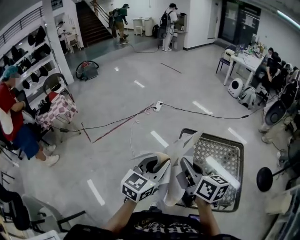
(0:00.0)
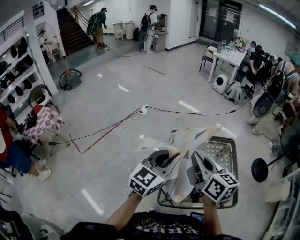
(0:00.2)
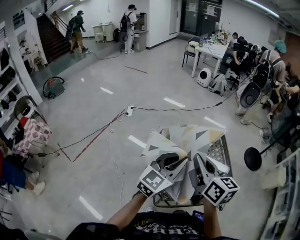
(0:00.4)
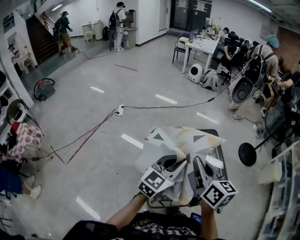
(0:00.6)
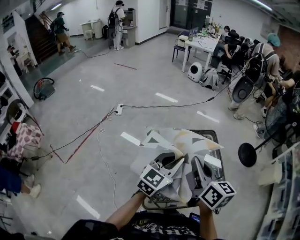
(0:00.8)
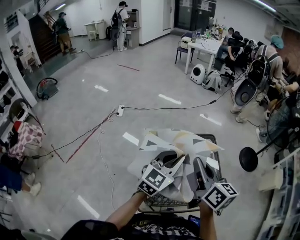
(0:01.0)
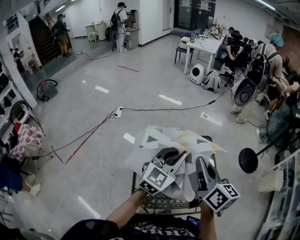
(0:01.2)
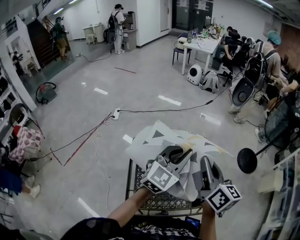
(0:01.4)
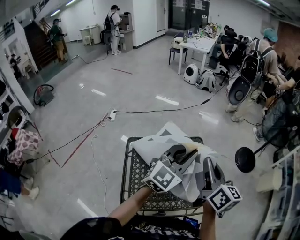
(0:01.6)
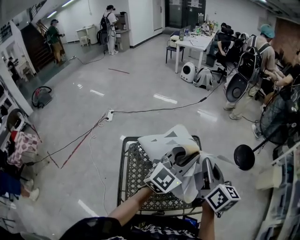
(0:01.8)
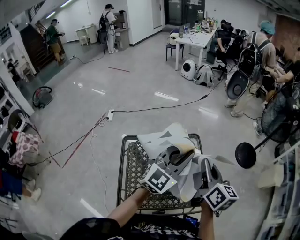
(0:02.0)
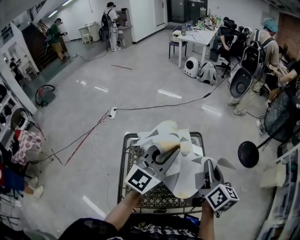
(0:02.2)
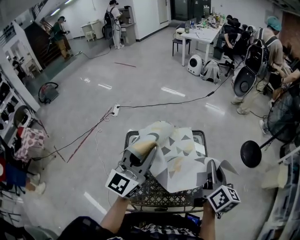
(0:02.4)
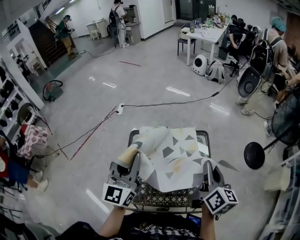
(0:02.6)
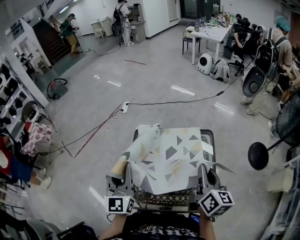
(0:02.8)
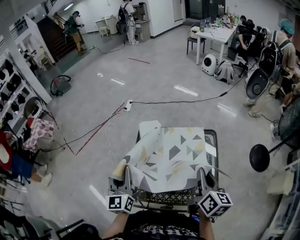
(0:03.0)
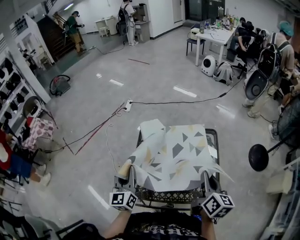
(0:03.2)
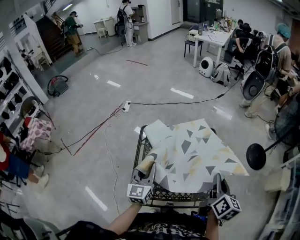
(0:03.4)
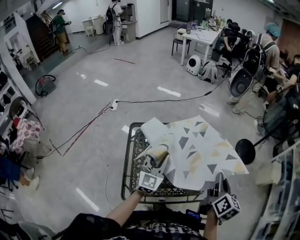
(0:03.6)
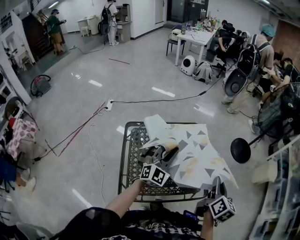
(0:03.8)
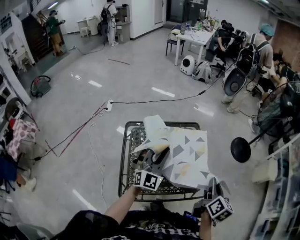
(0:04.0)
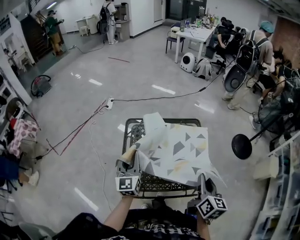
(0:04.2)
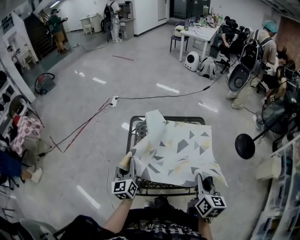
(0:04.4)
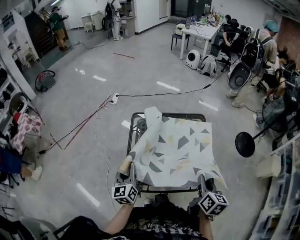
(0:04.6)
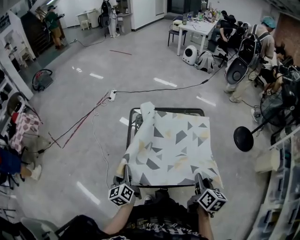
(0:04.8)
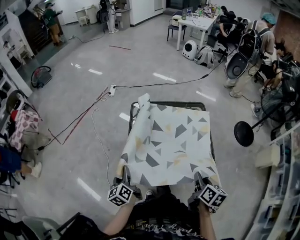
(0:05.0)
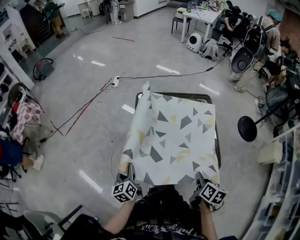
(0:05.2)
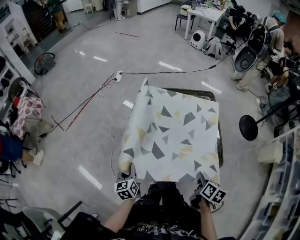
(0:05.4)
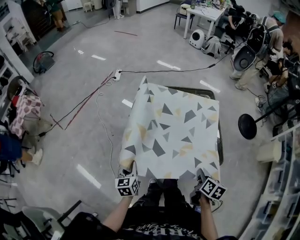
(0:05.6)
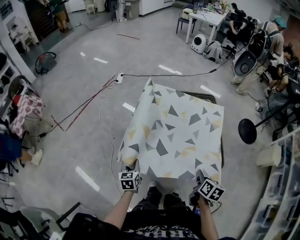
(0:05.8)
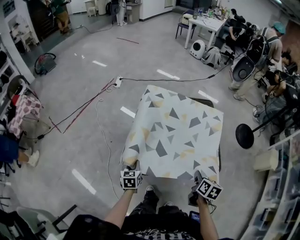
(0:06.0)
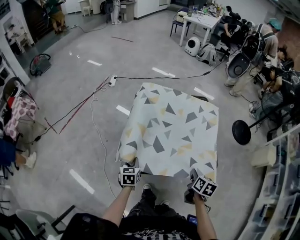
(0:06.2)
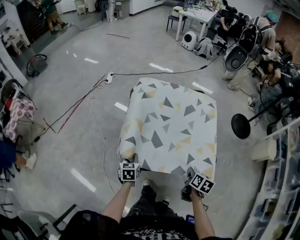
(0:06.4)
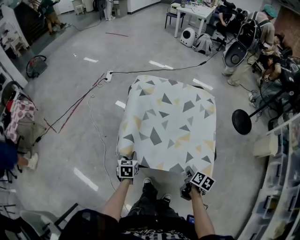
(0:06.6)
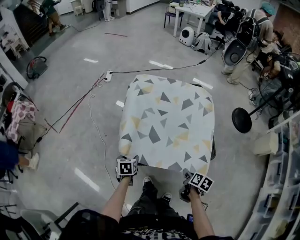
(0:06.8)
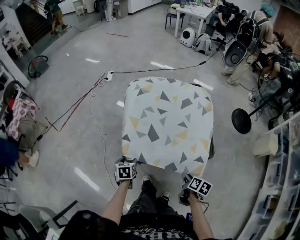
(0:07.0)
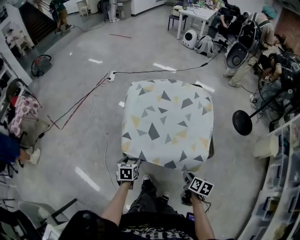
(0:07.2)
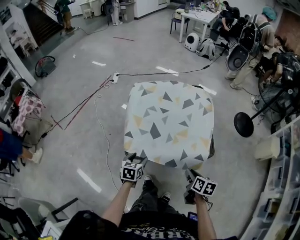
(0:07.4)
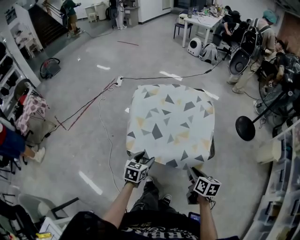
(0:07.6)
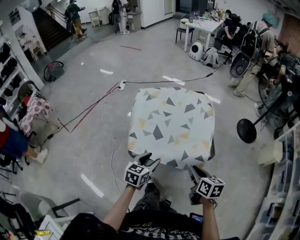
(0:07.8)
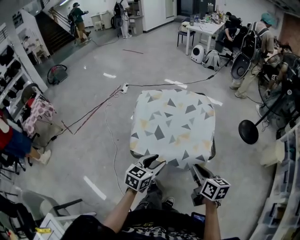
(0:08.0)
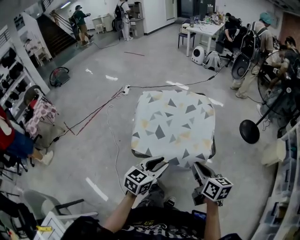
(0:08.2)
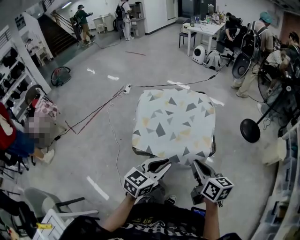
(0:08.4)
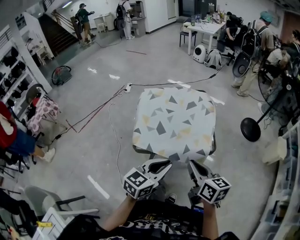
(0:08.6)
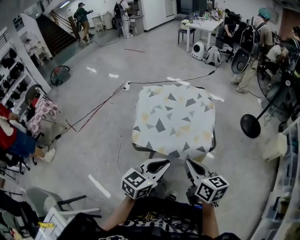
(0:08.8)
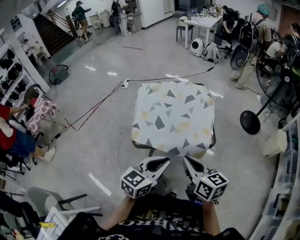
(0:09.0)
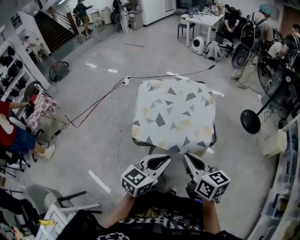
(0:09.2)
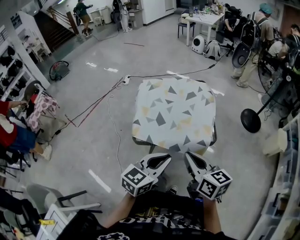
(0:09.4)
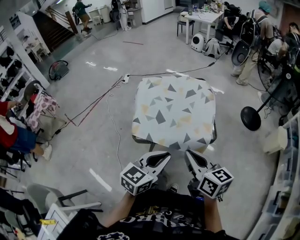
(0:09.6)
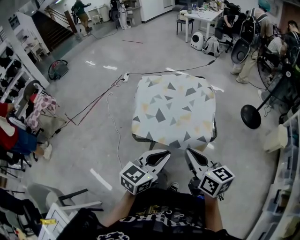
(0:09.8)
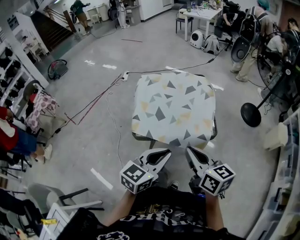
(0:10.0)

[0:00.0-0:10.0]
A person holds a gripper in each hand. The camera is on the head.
0:00.0 to 0:01.4: The left gripper ends up some 40 cm from where it was, and swivels approximately 40 degrees. Meanwhile the right gripper moves roughly 40 cm, and turns by approximately 40 degrees.
0:01.4 to 0:02.8: The left gripper moves approximately 20 cm, and turns by approximately 50 degrees, while the right gripper travels downward by about 10 cm.
0:02.8 to 0:04.2: The right gripper ends up approximately 15 cm from where it was. The left gripper swings up and down, about 15 cm each way, with 2 reversals.
0:04.2 to 0:05.8: The two grippers go some 25 cm downward, backward and to the left. The right gripper rotates roughly 30 degrees, while the left gripper points its fingers approximately 40 degrees further downward.
0:05.8 to 0:07.2: The left gripper shifts roughly 10 cm backward and downward, and opens its fingers. Meanwhile the right gripper travels backward and downward by about 15 cm, and opens its fingers.
0:07.2 to 0:08.6: The right gripper travels upward by roughly 25 cm, angles its fingers upward, by about 30 degrees, and closes. Meanwhile the left gripper is displaced upward, to the right and backward by about 40 cm, angles its fingers upward, by approximately 40 degrees, and closes.
0:08.6 to 0:10.0: The grippers stay close to where they were, moving slightly.

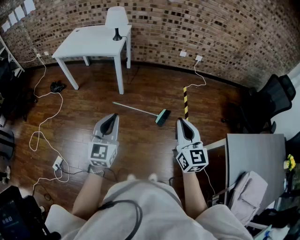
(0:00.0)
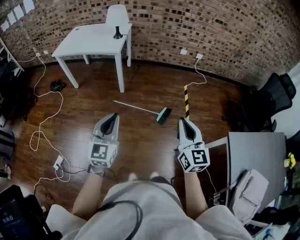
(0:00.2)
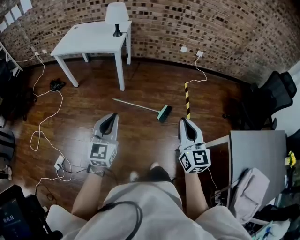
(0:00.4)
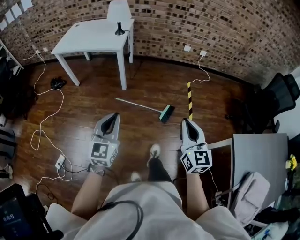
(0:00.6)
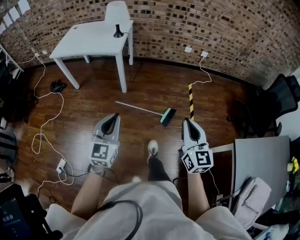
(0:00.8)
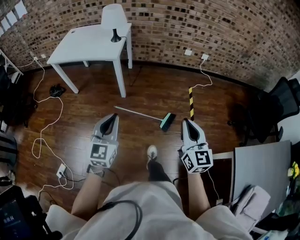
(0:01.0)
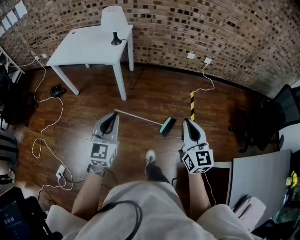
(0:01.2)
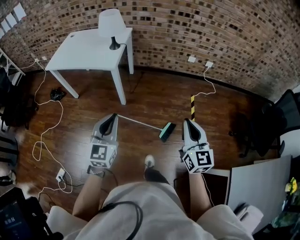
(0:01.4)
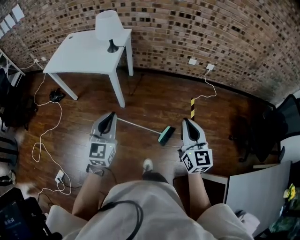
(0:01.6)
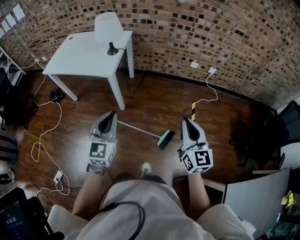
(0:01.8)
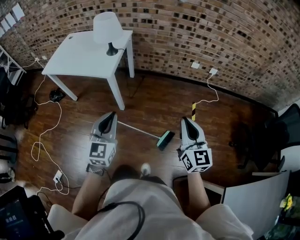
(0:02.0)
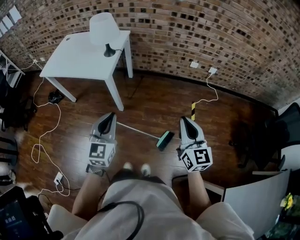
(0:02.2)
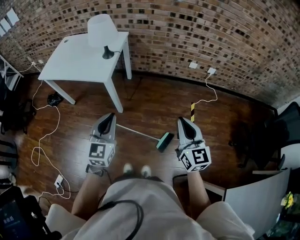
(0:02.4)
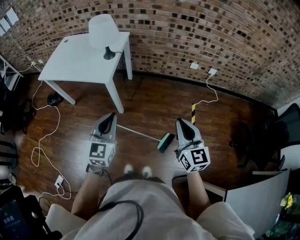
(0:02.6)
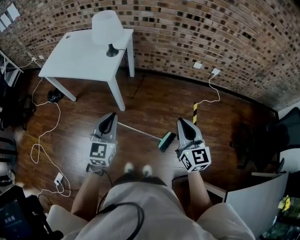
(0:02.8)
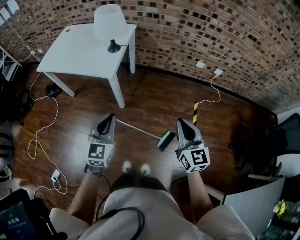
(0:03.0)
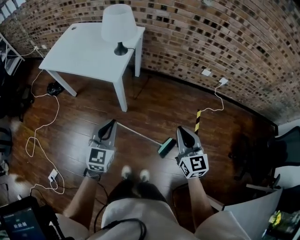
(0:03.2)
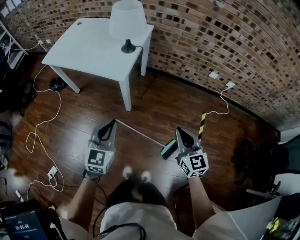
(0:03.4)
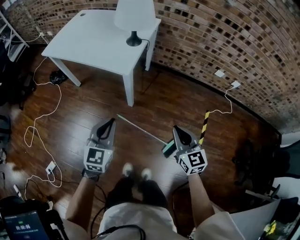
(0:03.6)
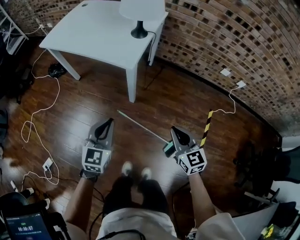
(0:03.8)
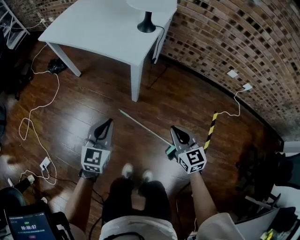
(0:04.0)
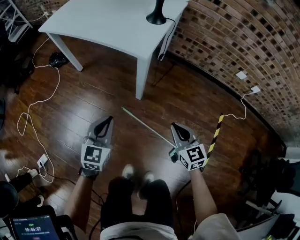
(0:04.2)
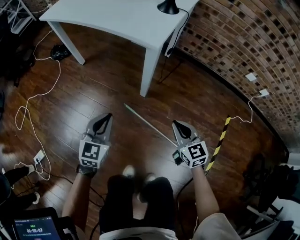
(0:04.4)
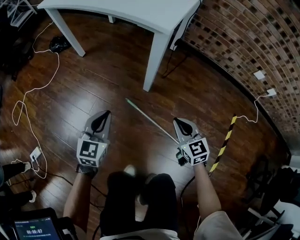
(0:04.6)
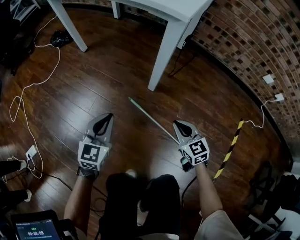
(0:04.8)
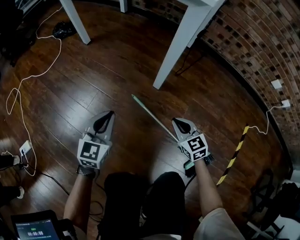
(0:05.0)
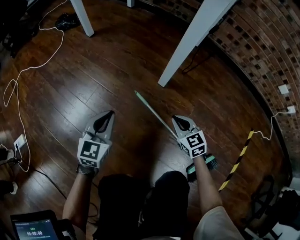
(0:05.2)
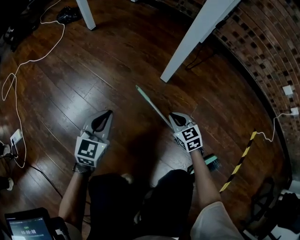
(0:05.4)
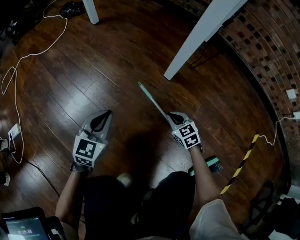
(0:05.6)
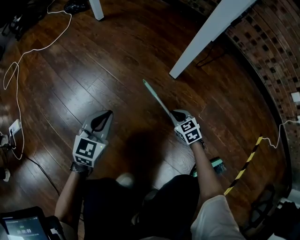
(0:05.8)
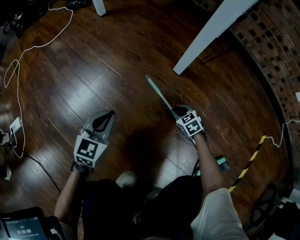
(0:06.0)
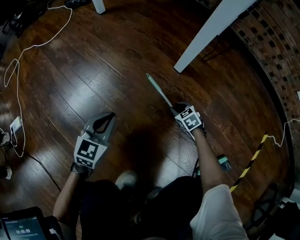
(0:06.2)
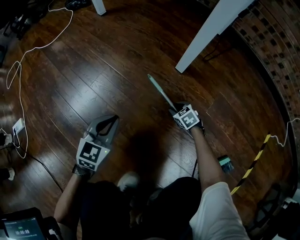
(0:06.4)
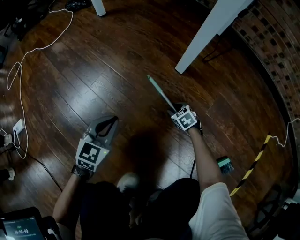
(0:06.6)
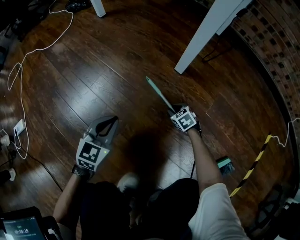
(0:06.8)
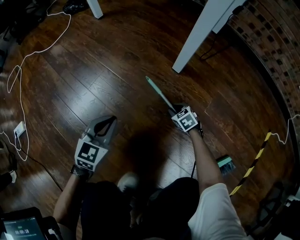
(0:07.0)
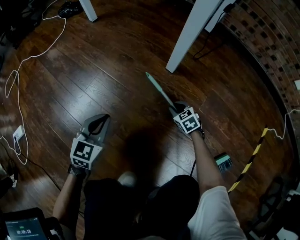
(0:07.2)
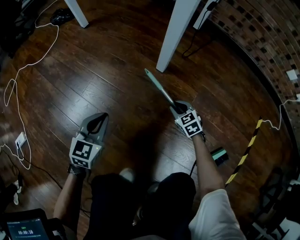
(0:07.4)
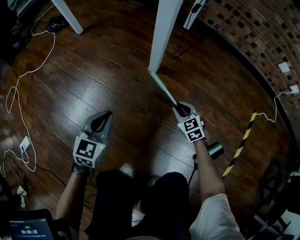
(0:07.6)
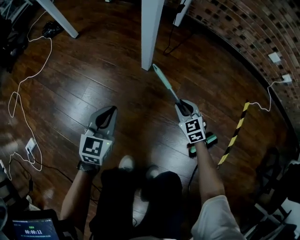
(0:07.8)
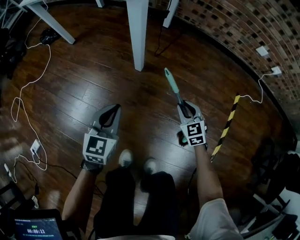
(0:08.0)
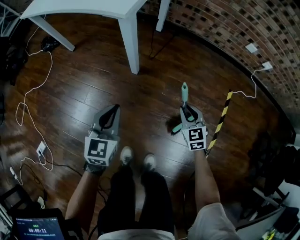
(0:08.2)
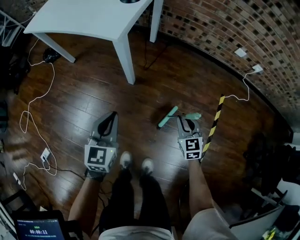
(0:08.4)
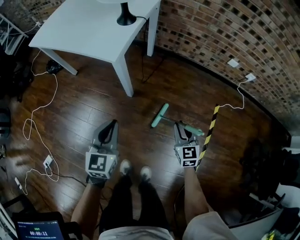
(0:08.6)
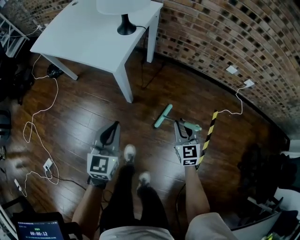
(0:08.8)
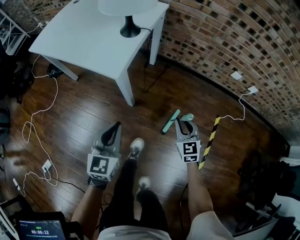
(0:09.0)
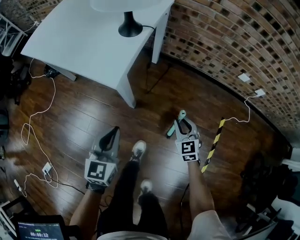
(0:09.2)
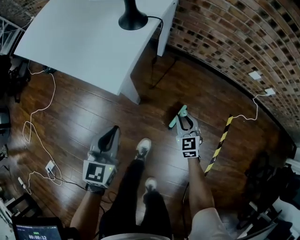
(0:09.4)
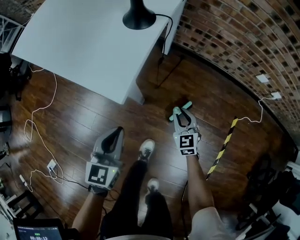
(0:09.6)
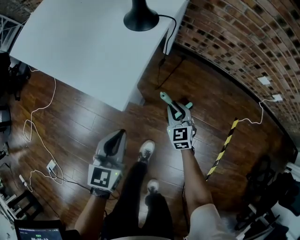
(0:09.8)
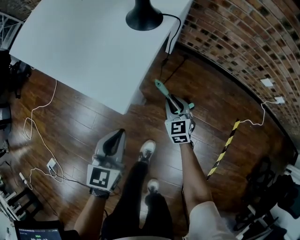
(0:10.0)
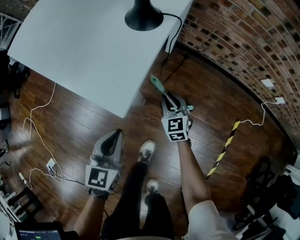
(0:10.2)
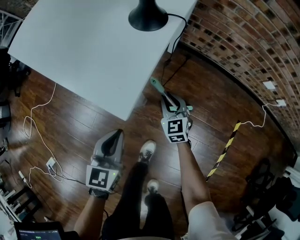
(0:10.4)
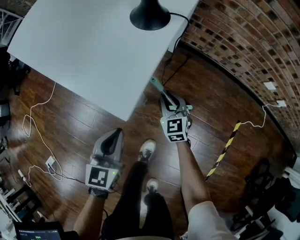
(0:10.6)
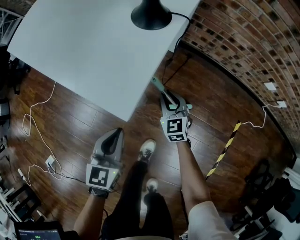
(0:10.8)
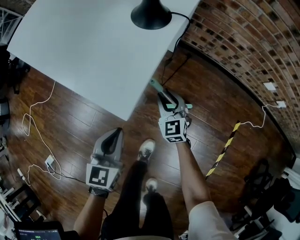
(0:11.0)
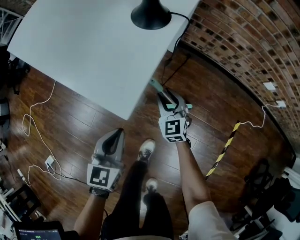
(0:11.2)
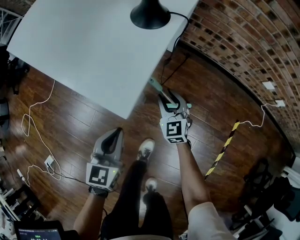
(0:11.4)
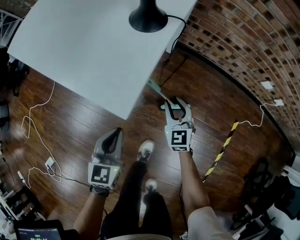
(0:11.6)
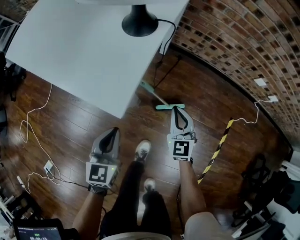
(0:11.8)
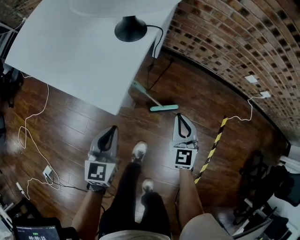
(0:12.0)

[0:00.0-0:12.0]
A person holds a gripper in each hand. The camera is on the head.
0:00.0 to 0:01.6: Both grippers travel together forward, about 30 cm.
0:01.6 to 0:03.0: The right gripper travels forward by about 15 cm. Meanwhile the left gripper heads forward and downward, covering approximately 15 cm.
0:03.0 to 0:04.4: The left gripper travels downward and to the left by some 40 cm, while the right gripper moves downward, roughly 40 cm, and swivels some 30 degrees.
0:04.4 to 0:06.0: The two grippers go some 50 cm downward. The right gripper swivels about 40 degrees.
0:06.0 to 0:07.6: Both grippers travel together upward and to the right, roughly 15 cm.
0:07.6 to 0:09.0: Both grippers move upward, some 40 cm. The right gripper turns by about 30 degrees.
0:09.0 to 0:10.4: The left gripper is displaced downward, forward and to the left by some 20 cm, while the right gripper travels forward, downward and to the left by some 30 cm.
0:10.4 to 0:12.0: The right gripper moves upward, to the right and backward, some 20 cm.

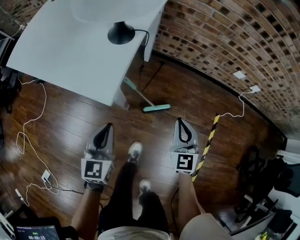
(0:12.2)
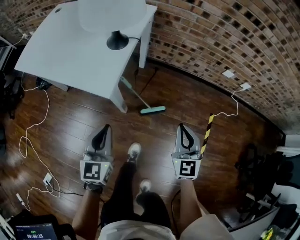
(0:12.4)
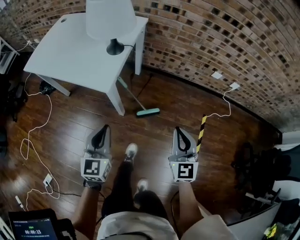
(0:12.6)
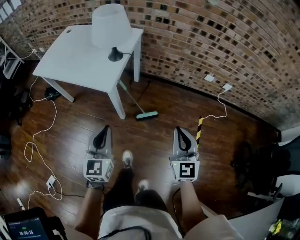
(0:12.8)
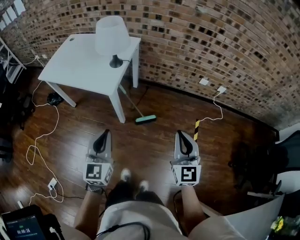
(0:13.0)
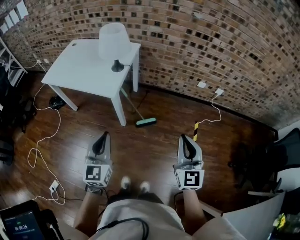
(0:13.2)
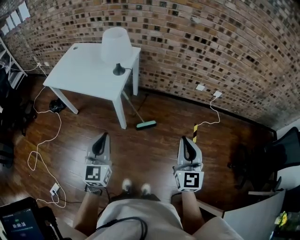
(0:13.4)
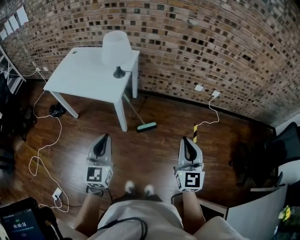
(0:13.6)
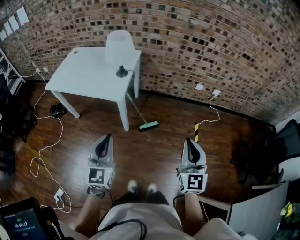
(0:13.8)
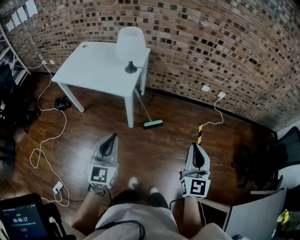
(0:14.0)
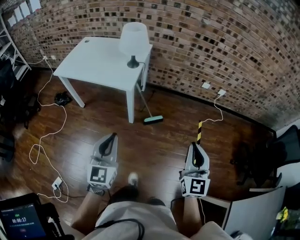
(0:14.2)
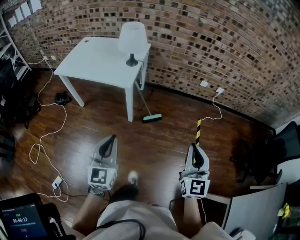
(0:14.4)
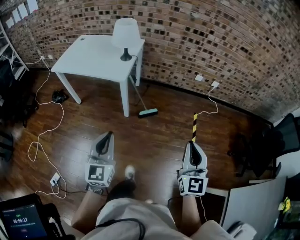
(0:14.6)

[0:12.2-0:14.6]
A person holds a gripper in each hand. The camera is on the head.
0:12.2 to 0:13.4: Both grippers travel together upward and backward, approximately 40 cm.
0:13.4 to 0:14.6: The grippers both shift backward by approximately 15 cm.
